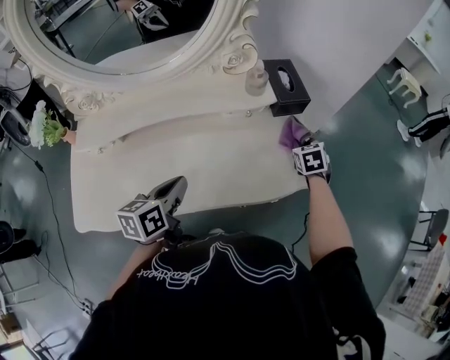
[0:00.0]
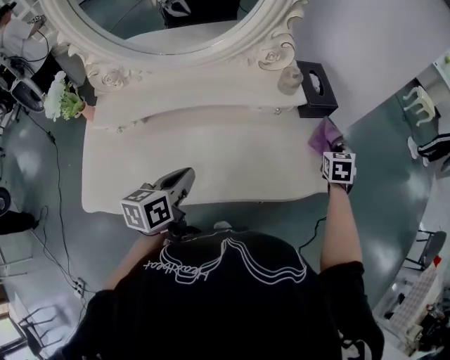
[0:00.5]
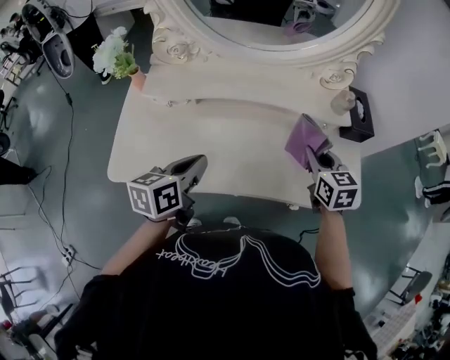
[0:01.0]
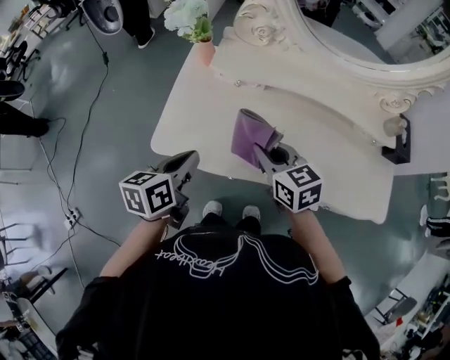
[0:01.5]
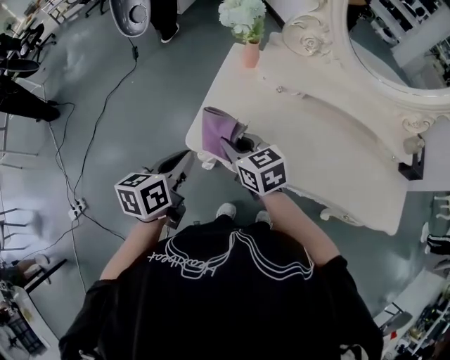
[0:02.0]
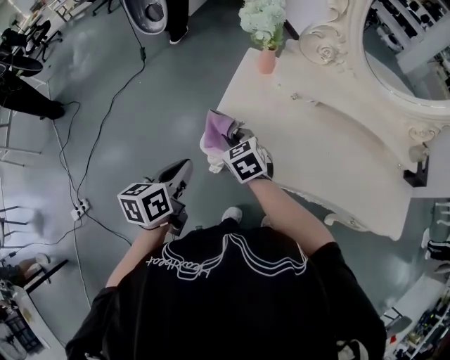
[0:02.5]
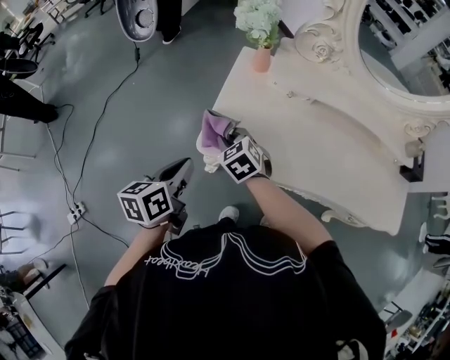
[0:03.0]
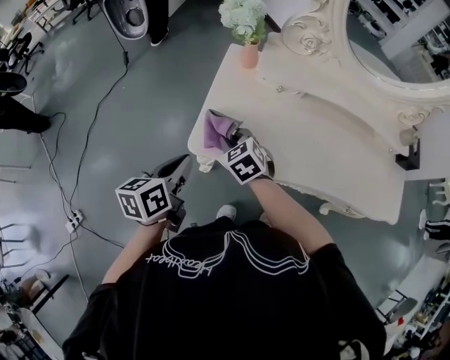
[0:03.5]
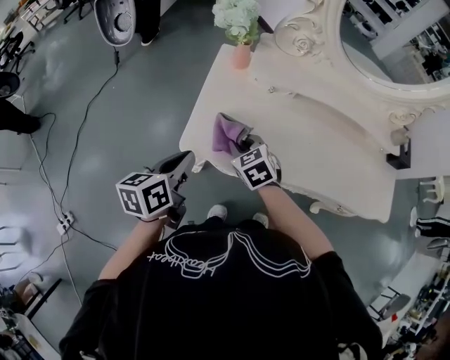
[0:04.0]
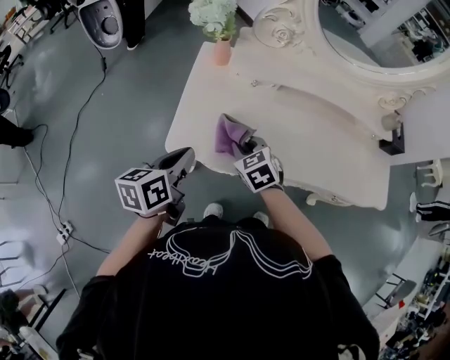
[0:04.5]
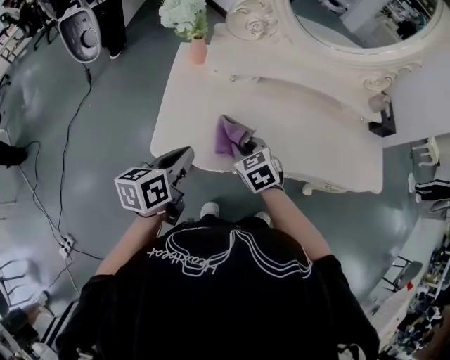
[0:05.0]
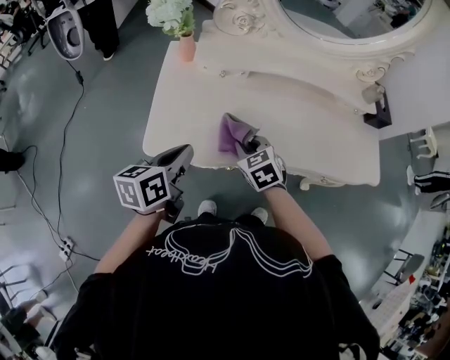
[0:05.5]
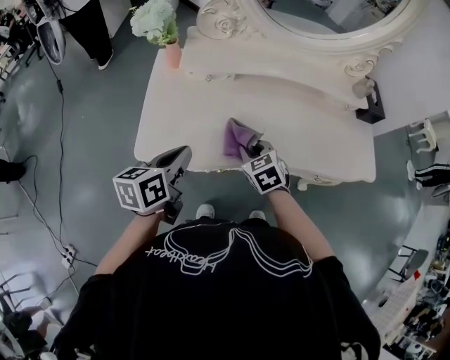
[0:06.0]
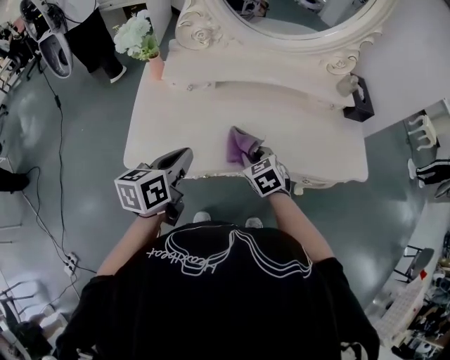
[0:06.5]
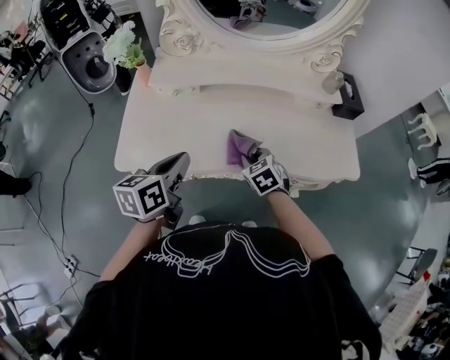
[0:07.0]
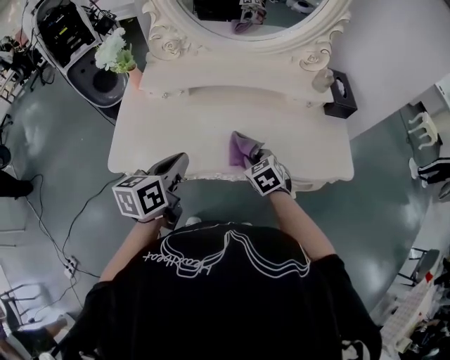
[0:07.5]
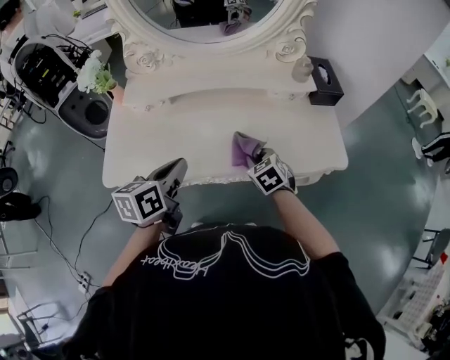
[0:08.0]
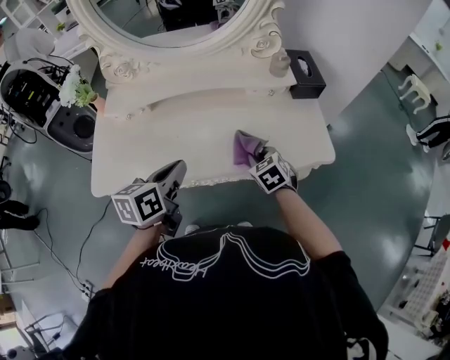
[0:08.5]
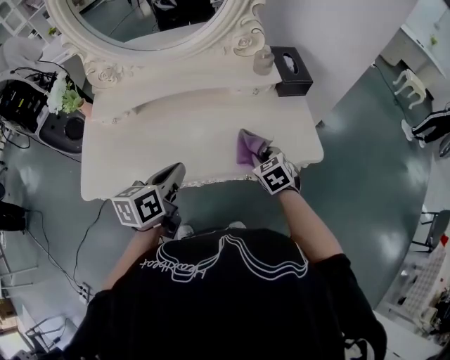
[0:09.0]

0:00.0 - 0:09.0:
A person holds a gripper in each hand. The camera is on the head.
0:00.0 - 0:02.0: Both grippers are carried approximately 70 cm. The right gripper rotates about 60 degrees. Meanwhile the left gripper turns by about 30 degrees.
0:02.0 - 0:04.5: The right gripper shifts some 10 cm to the right and downward, and rotates some 30 degrees.
0:04.5 - 0:07.0: The grippers both shift to the right by some 25 cm.
0:07.0 - 0:09.0: The two grippers go approximately 20 cm to the right.

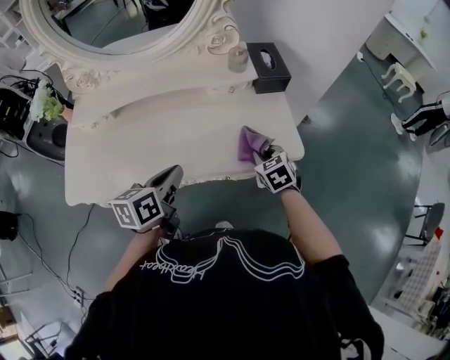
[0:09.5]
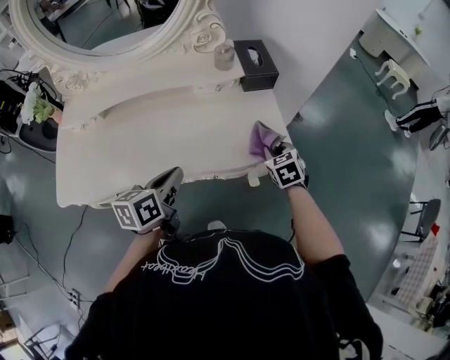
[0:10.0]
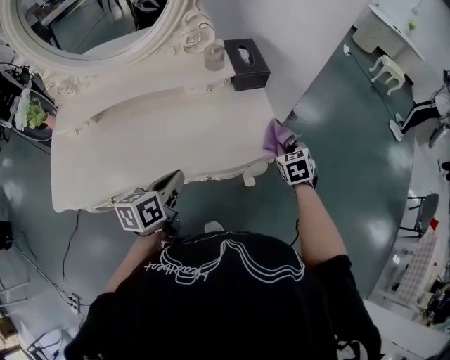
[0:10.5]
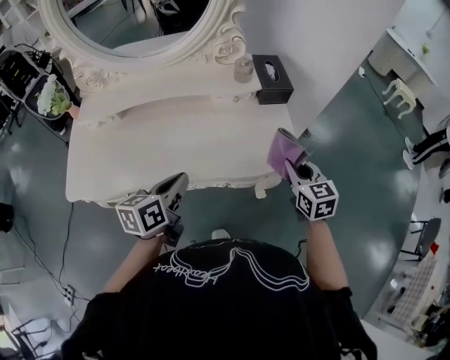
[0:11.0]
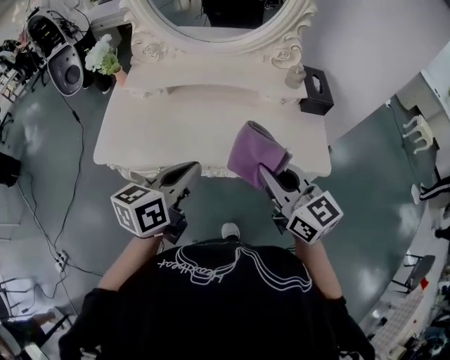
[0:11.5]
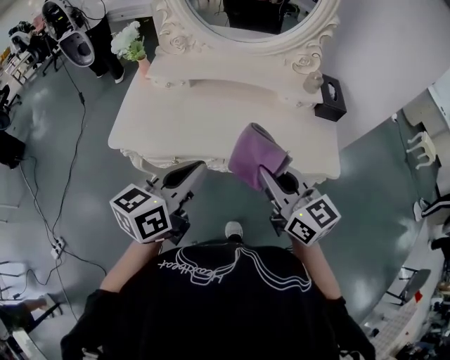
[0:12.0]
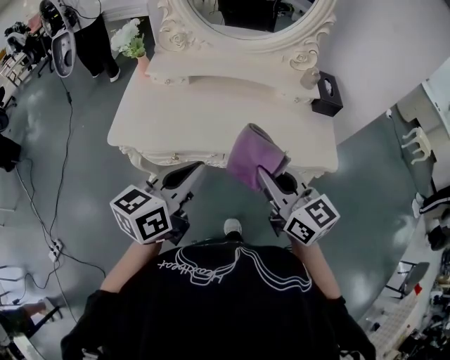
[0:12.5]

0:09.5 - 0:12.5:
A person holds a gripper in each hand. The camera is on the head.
0:09.5 - 0:11.0: The right gripper heads upward and to the right, covering roughly 15 cm, and changes its angle by some 20 degrees.
0:11.0 - 0:12.5: The left gripper is displaced to the left, backward and upward by roughly 25 cm. The right gripper moves to the left and upward, approximately 35 cm, and rotates roughly 40 degrees.

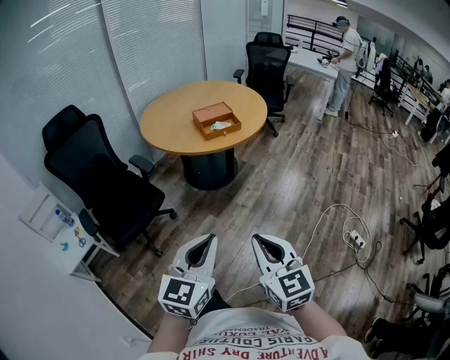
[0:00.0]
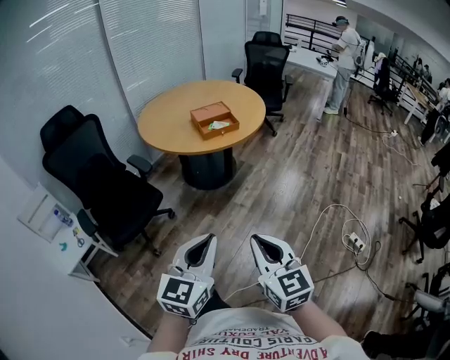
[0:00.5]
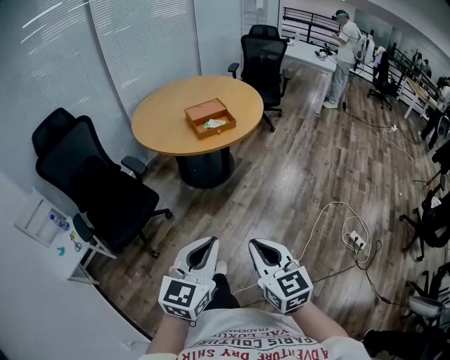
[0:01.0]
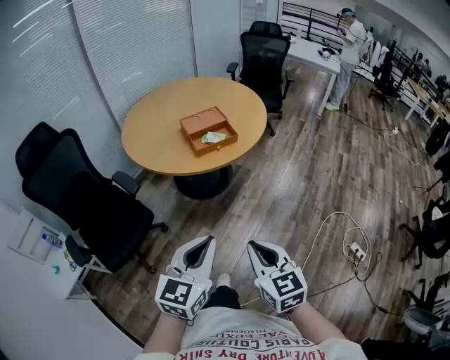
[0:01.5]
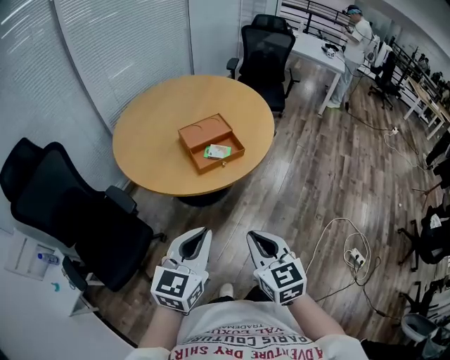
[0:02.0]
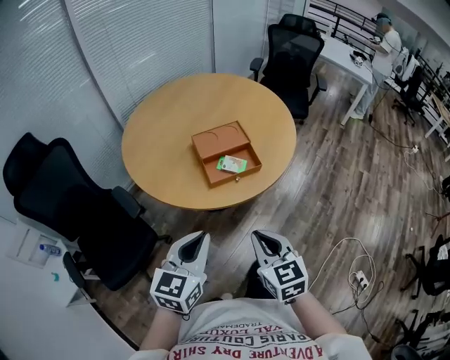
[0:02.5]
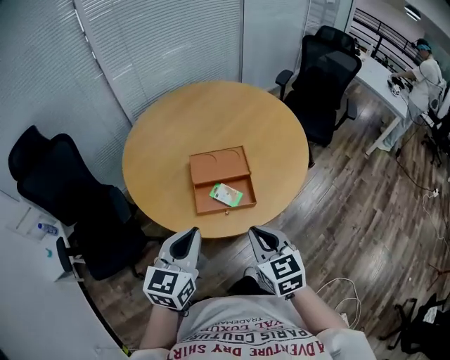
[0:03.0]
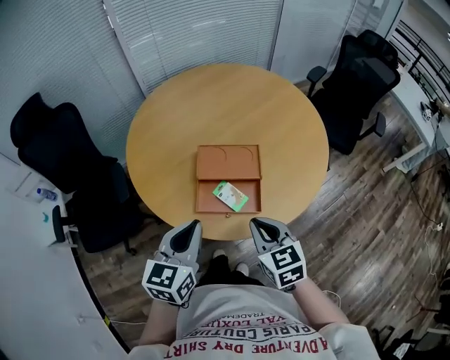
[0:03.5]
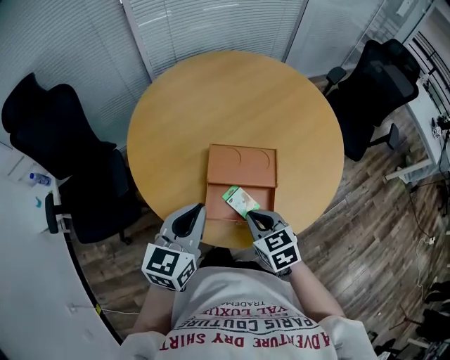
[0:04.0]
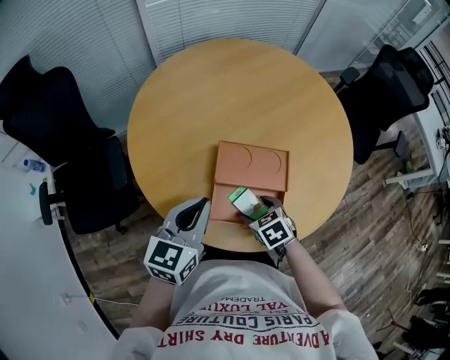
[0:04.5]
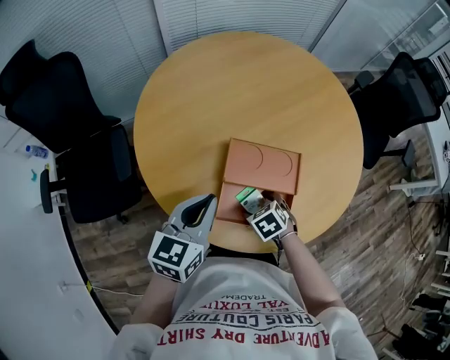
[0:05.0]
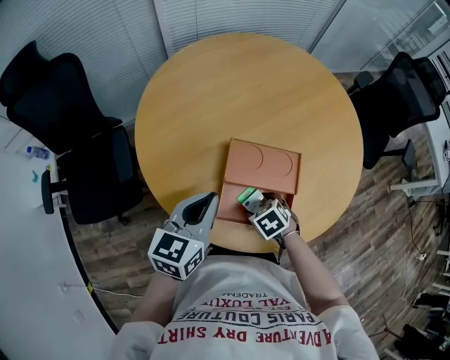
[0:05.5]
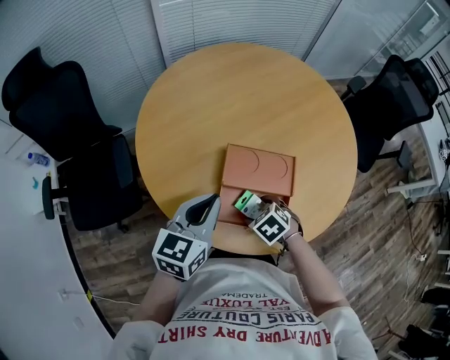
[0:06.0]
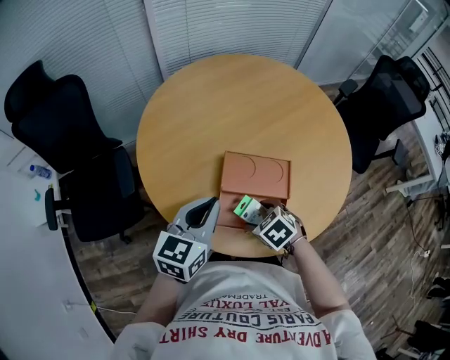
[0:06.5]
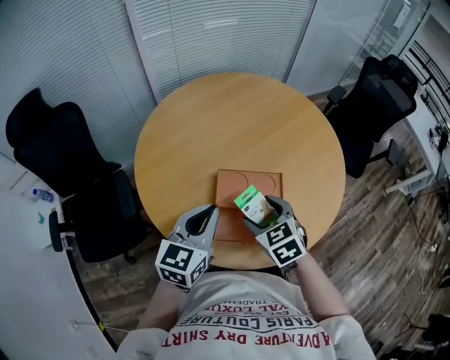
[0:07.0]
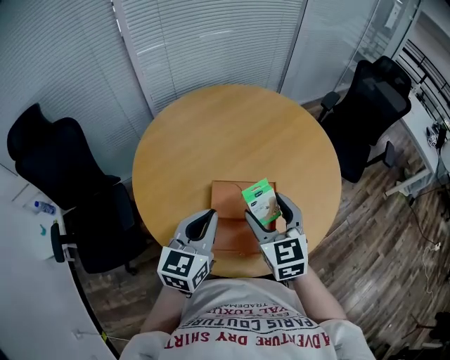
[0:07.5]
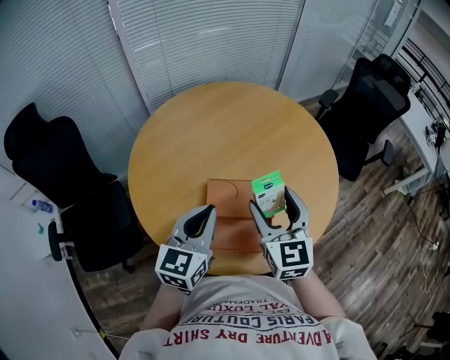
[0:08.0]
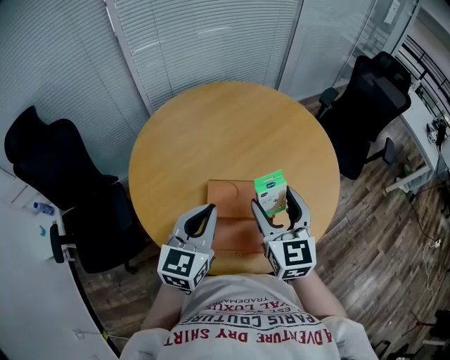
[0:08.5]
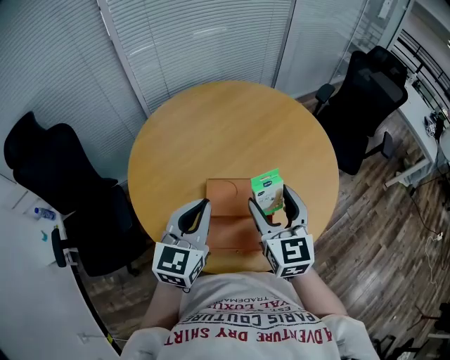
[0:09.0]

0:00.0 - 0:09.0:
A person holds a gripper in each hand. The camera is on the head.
0:00.0 - 0:02.0: The grippers both shift forward by roughly 40 cm.
0:02.0 - 0:04.5: The pair of grippers is taken some 40 cm. The left gripper rotates some 30 degrees. Meanwhile the right gripper tilts its fingers about 40 degrees downward, and opens its fingers.
0:04.5 - 0:07.0: The right gripper goes some 15 cm upward. Meanwhile the left gripper changes place by about 5 cm.
0:07.0 - 0:09.0: The right gripper travels upward and to the right by roughly 15 cm, and tilts its fingers roughly 30 degrees upward; the left gripper changes place by some 5 cm.

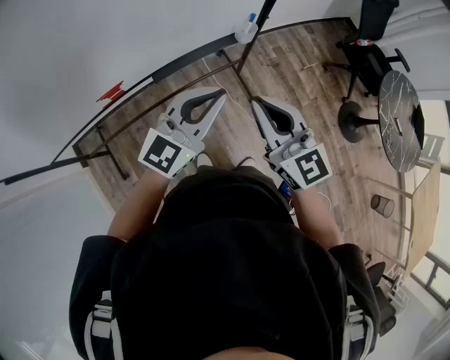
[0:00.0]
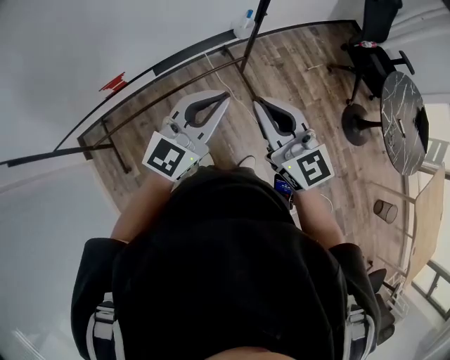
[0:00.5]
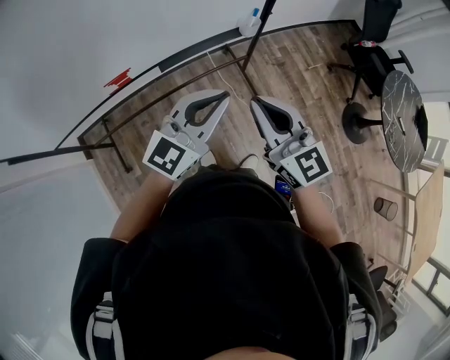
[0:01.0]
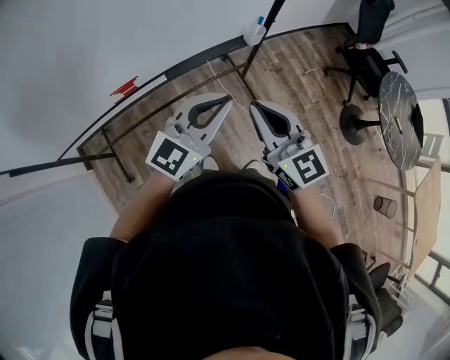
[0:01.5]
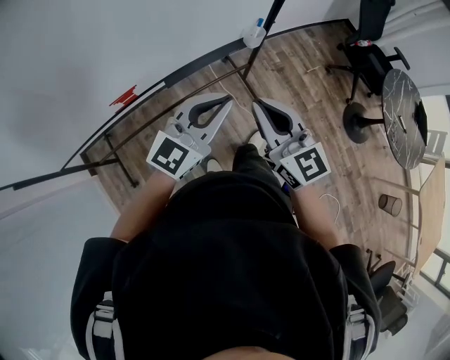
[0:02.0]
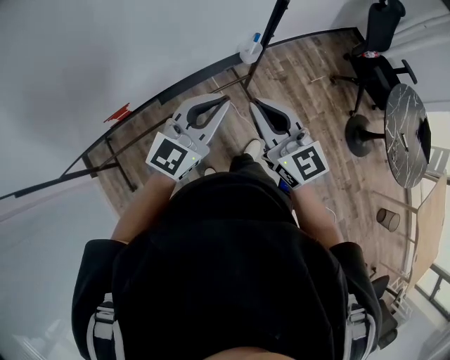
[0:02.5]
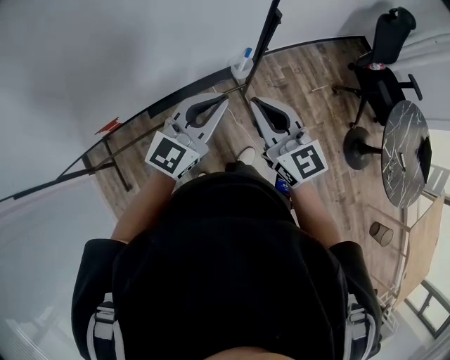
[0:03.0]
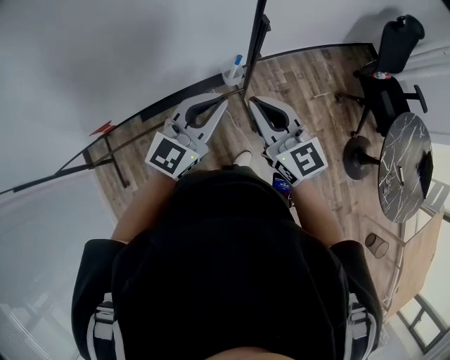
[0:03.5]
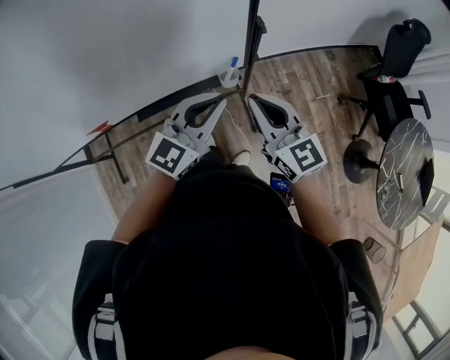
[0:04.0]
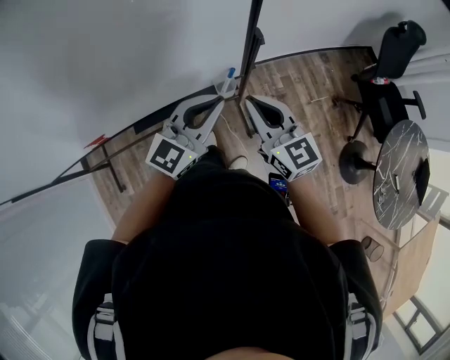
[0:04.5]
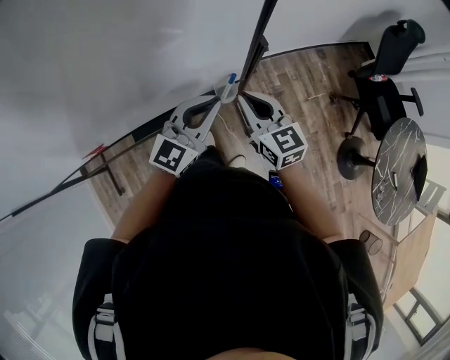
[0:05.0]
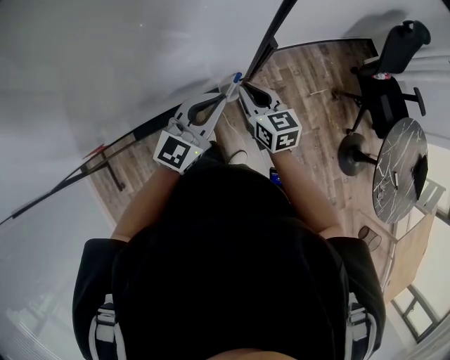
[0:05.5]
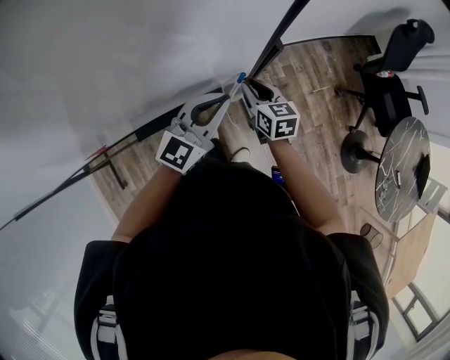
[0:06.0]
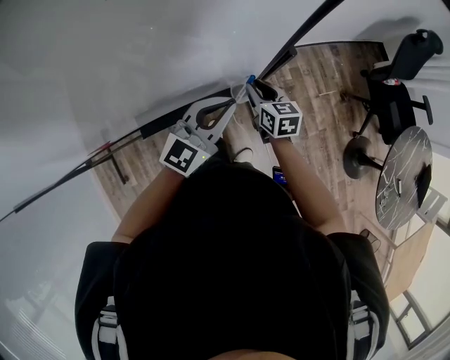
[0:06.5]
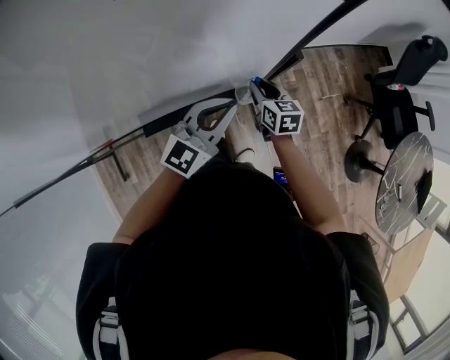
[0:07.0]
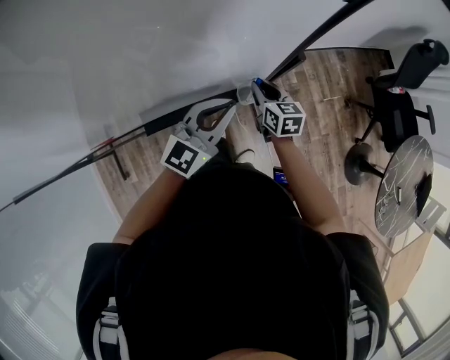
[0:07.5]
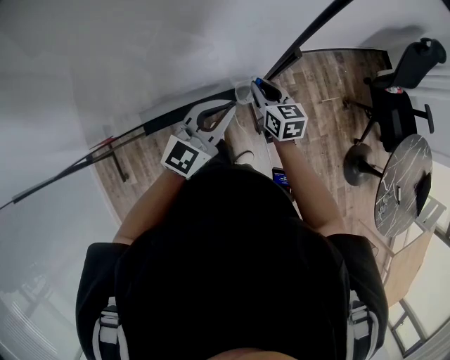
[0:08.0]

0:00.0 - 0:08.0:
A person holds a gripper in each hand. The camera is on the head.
0:02.0 - 0:04.0: Both grippers move forward and to the right, roughly 30 cm.
0:04.0 - 0:06.0: The left gripper goes roughly 10 cm forward and downward. Meanwhile the right gripper goes some 25 cm downward and forward, and swivels approximately 30 degrees.
0:06.0 - 0:08.0: The grippers move only a little.
